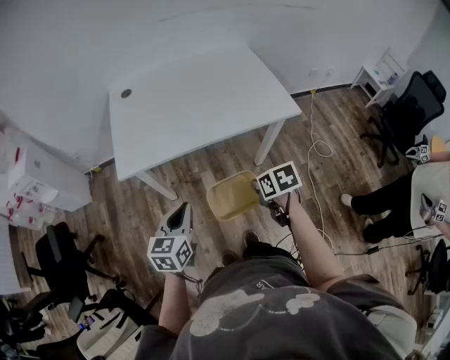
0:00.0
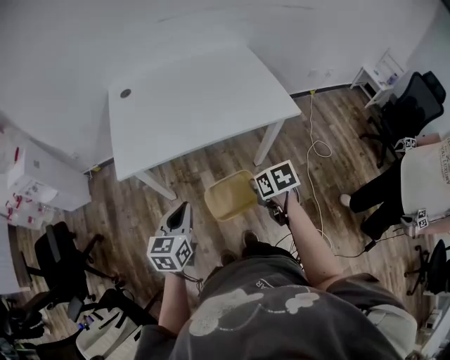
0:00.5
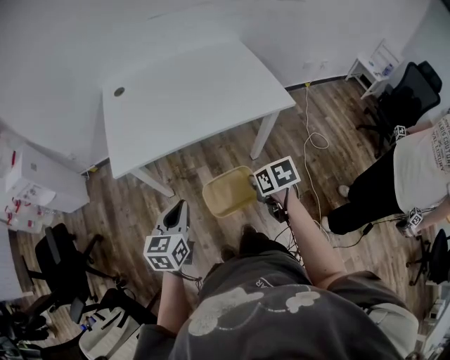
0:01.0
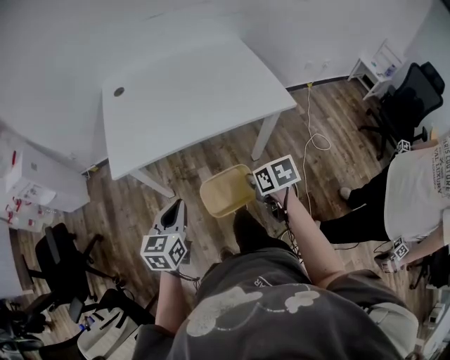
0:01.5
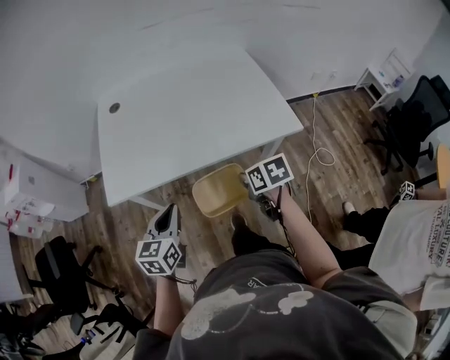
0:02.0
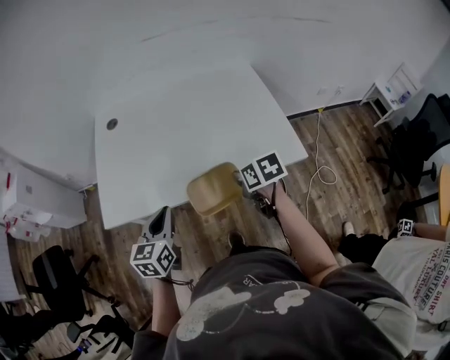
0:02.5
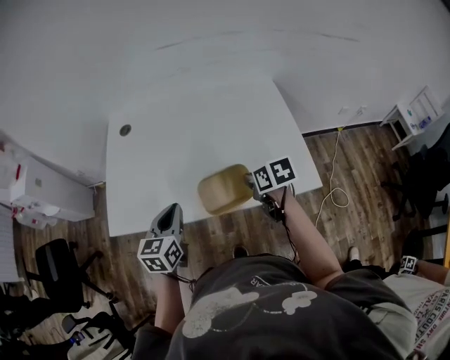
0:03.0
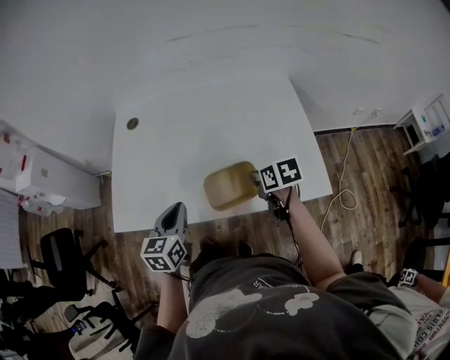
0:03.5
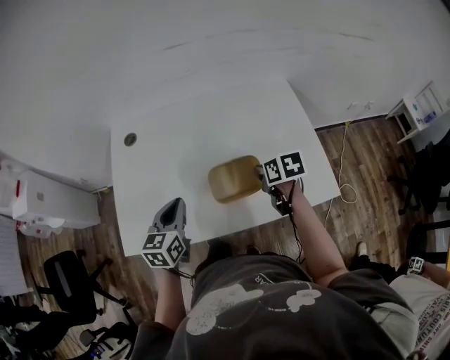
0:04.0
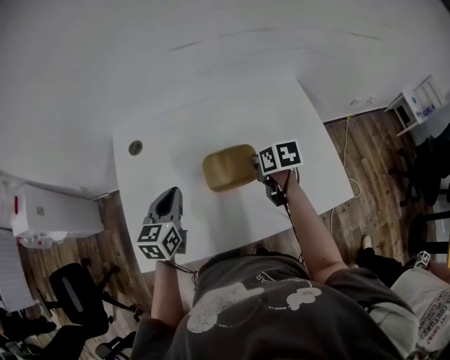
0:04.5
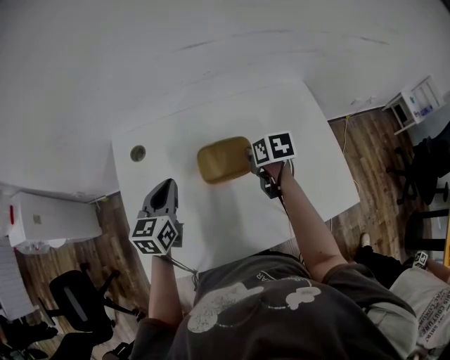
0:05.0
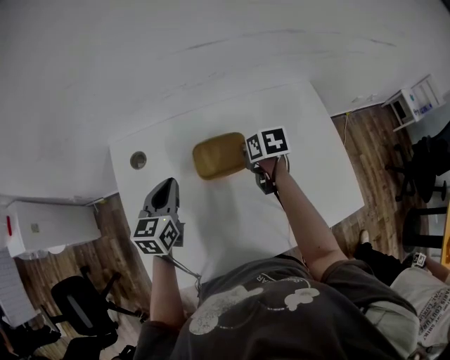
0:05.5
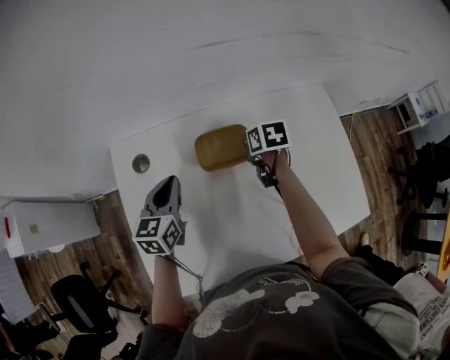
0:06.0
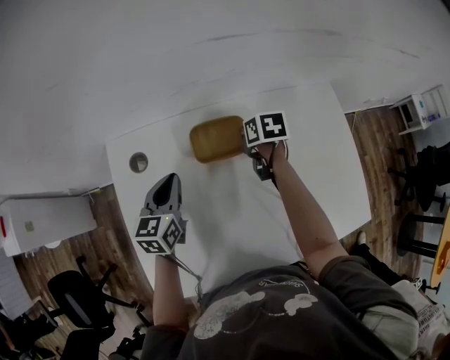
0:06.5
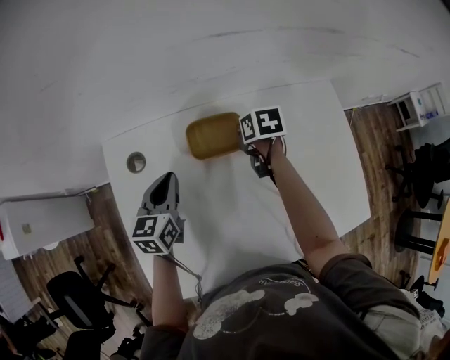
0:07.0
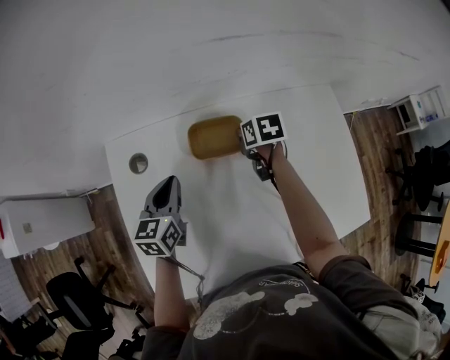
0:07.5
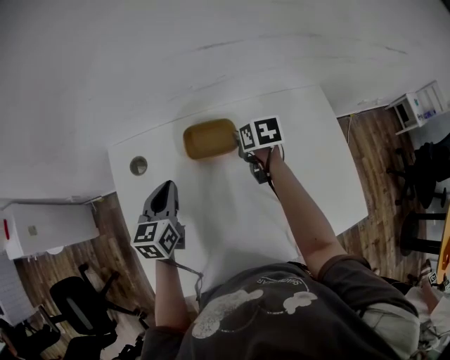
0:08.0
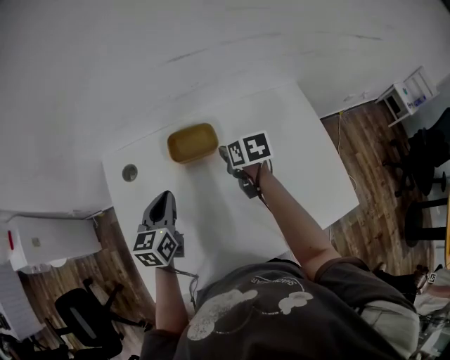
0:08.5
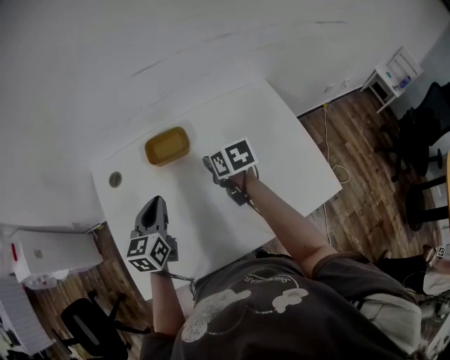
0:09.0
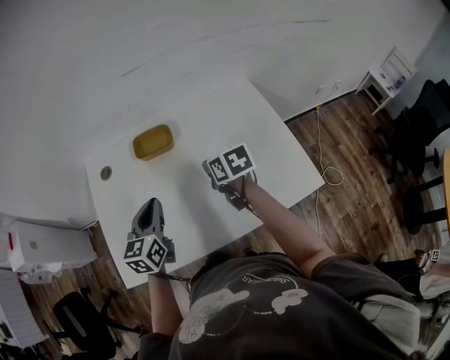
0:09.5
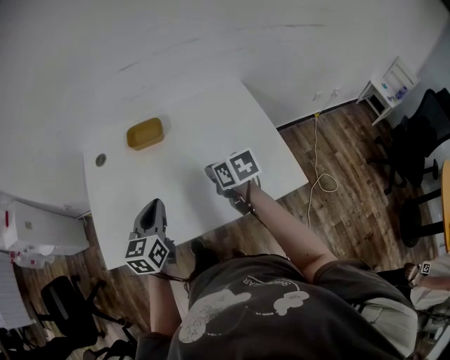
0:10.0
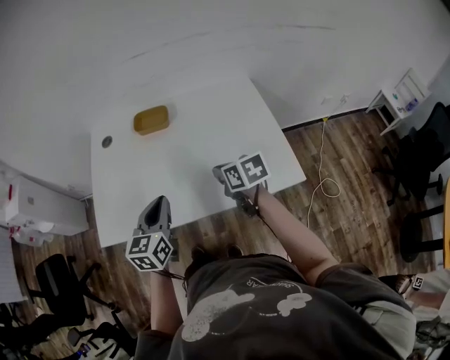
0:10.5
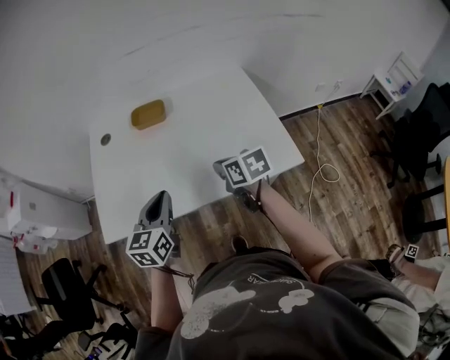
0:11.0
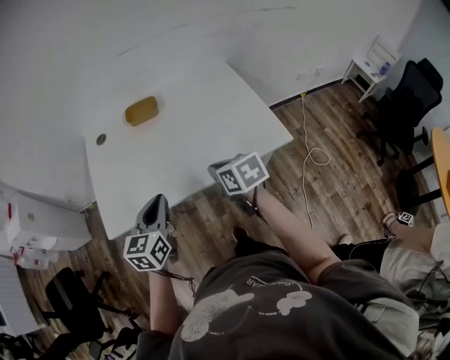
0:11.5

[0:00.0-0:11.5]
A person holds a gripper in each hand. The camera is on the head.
0:00.0 to 0:02.0: The grippers both shift forward by approximately 15 cm.
0:02.0 to 0:04.0: Both grippers move forward, some 35 cm.
0:04.0 to 0:06.0: The left gripper travels forward by some 30 cm, while the right gripper is displaced forward and to the left by approximately 35 cm.
0:06.0 to 0:07.5: The right gripper heads forward, covering approximately 5 cm.
0:07.5 to 0:09.5: The left gripper moves backward, to the right and upward, about 35 cm, while the right gripper travels backward and upward by approximately 35 cm.
0:09.5 to 0:11.5: The two grippers go about 30 cm backward.

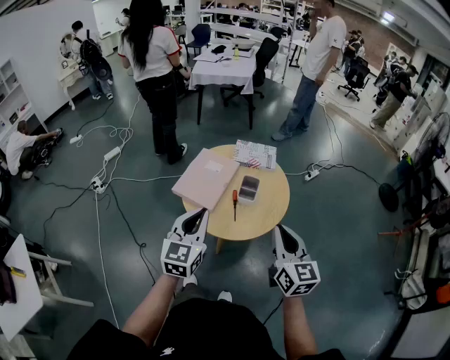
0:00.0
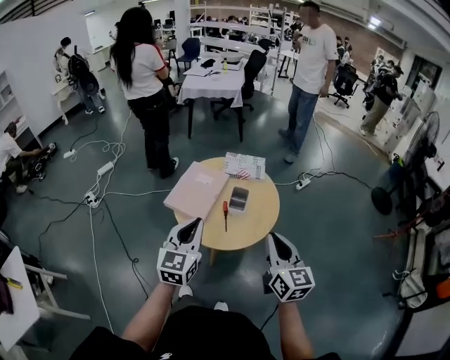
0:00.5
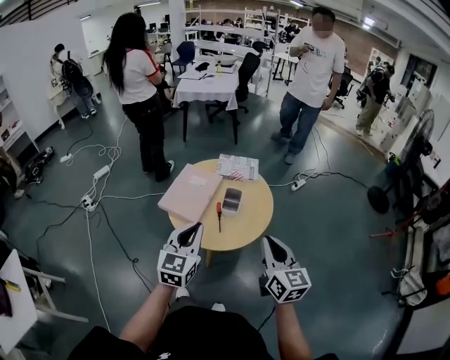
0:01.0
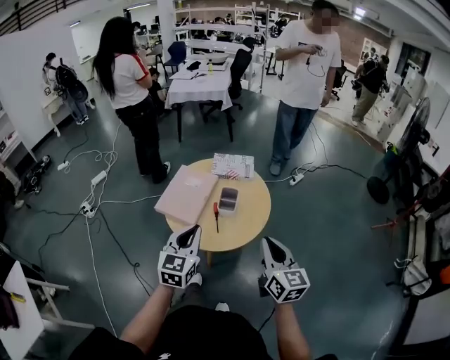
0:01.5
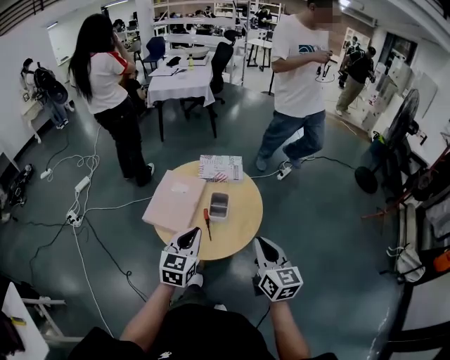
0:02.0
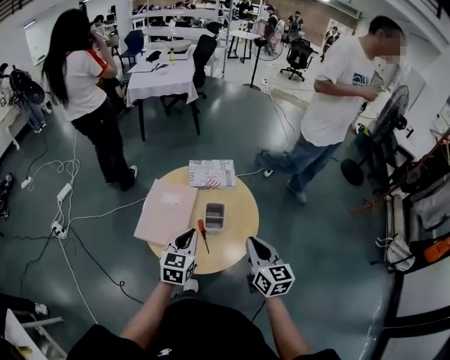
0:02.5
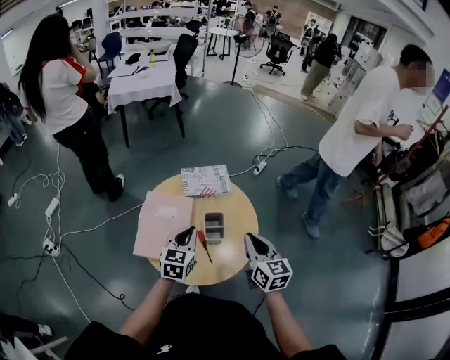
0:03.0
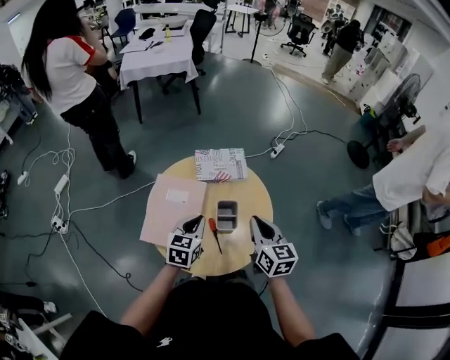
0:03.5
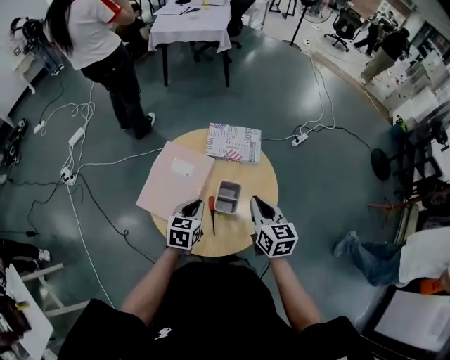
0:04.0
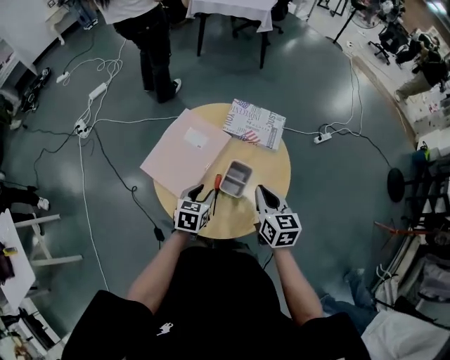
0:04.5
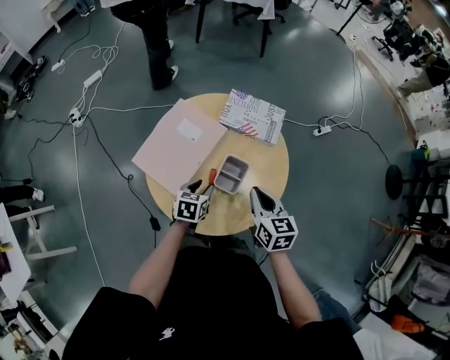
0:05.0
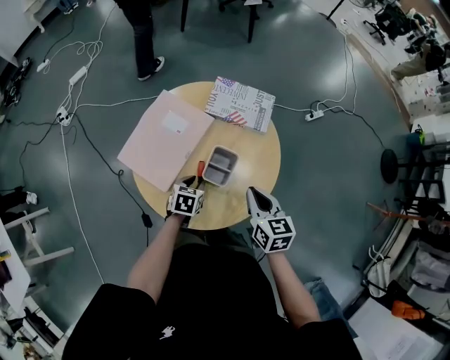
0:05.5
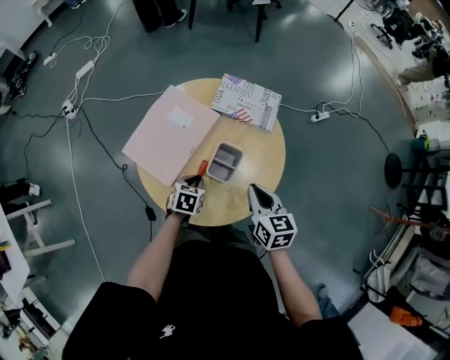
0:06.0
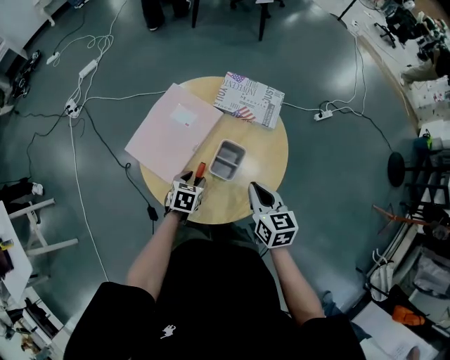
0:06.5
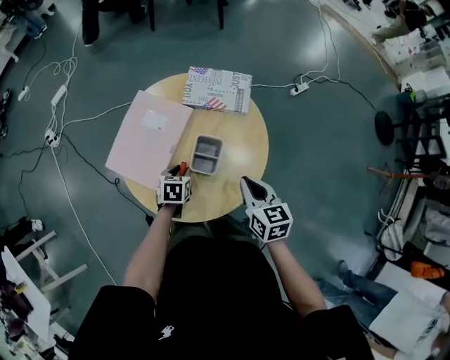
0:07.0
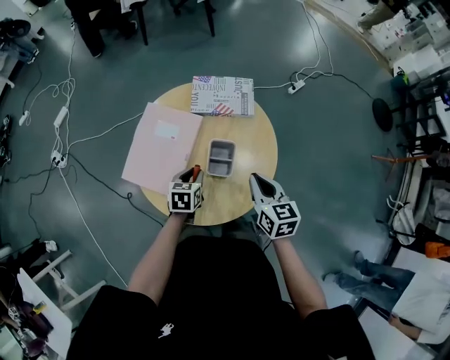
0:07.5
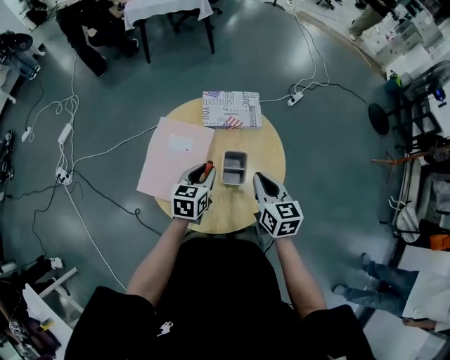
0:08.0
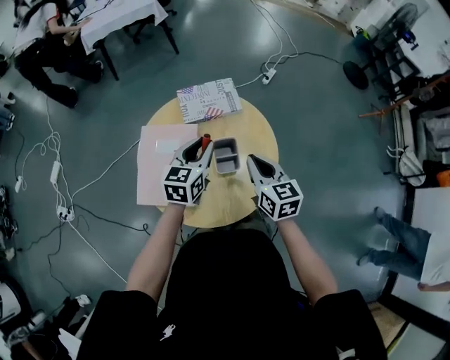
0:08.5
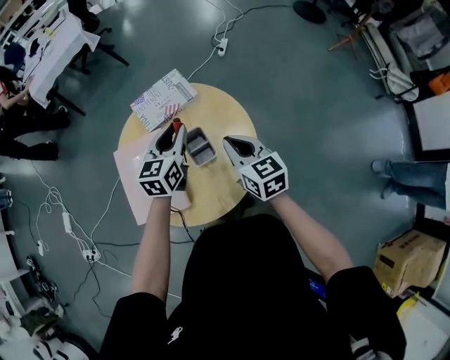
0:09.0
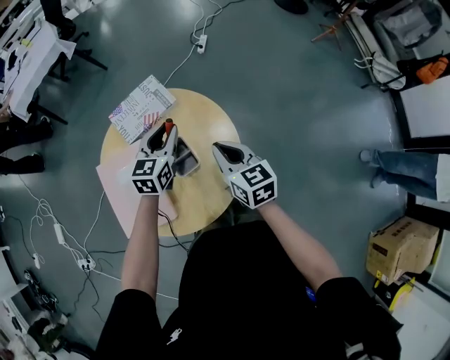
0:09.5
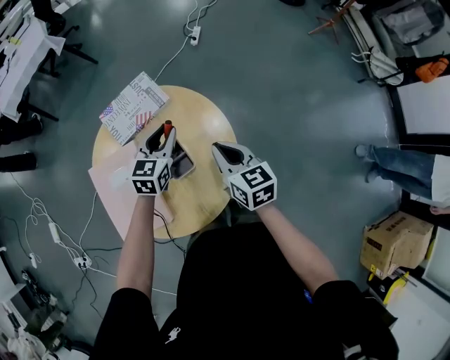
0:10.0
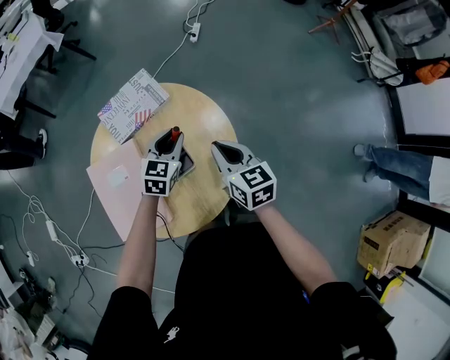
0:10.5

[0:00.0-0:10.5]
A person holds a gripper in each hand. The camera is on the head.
0:00.0 to 0:02.0: The left gripper goes about 10 cm downward, to the right and forward. The right gripper changes place by approximately 5 cm.
0:02.0 to 0:04.0: Both grippers move forward and downward, some 25 cm. The left gripper changes its angle by some 20 degrees.
0:04.0 to 0:06.5: The left gripper heads downward, covering roughly 15 cm, swivels approximately 20 degrees, and opens its fingers. Meanwhile the right gripper heads downward, covering approximately 10 cm.
0:06.5 to 0:08.5: The right gripper heads upward, covering about 5 cm, and swivels some 30 degrees; the left gripper goes some 25 cm upward, tips its fingers upward by some 40 degrees, and closes its fingers.
0:08.5 to 0:10.5: The left gripper travels to the right, downward and forward by some 15 cm, and swivels approximately 30 degrees. Meanwhile the right gripper heads to the right, covering approximately 5 cm.

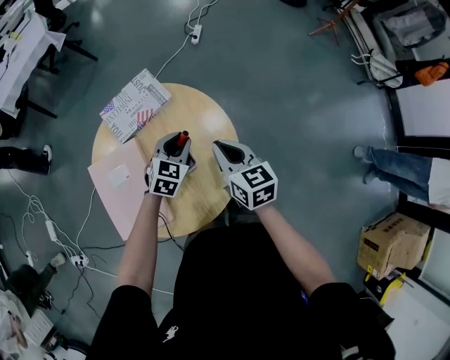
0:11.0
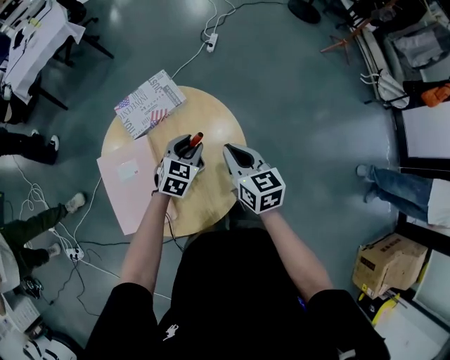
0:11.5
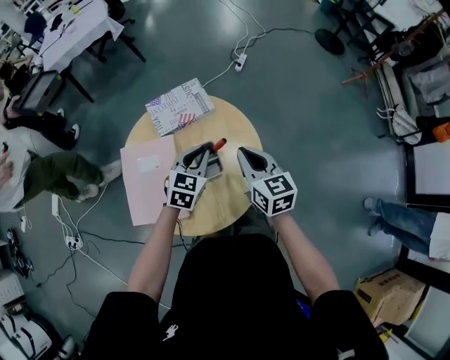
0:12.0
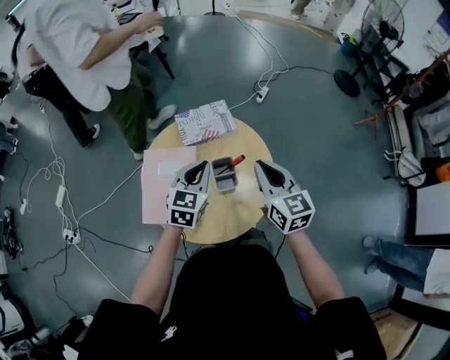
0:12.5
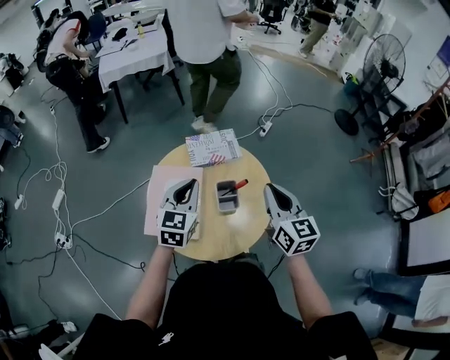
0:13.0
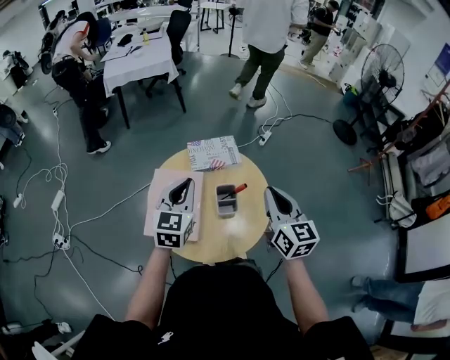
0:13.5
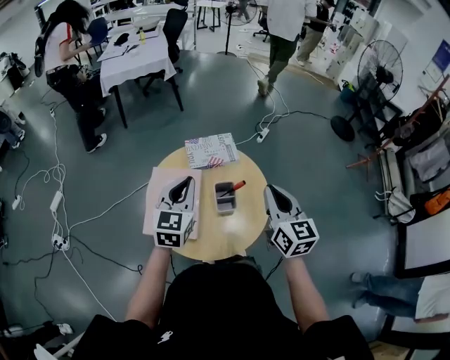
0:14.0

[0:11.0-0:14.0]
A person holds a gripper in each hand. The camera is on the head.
0:11.0 to 0:12.5: The left gripper is displaced upward, to the left and backward by roughly 20 cm, changes its angle by some 30 degrees, and closes its fingers. Meanwhile the right gripper is displaced upward by some 15 cm, and changes its angle by about 20 degrees.
0:12.5 to 0:14.0: The right gripper heads upward, covering about 5 cm. The left gripper heads upward and to the left, covering some 10 cm.

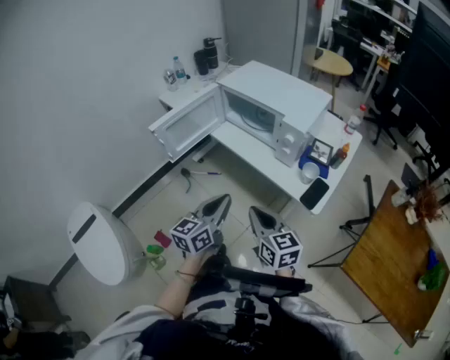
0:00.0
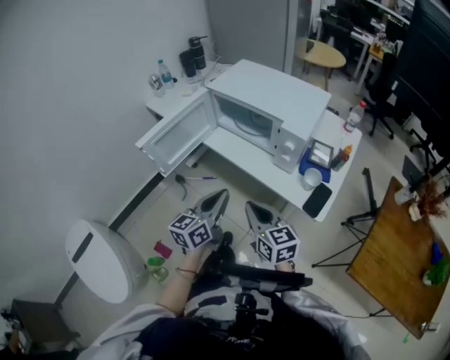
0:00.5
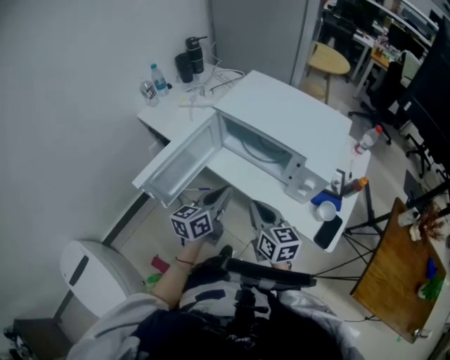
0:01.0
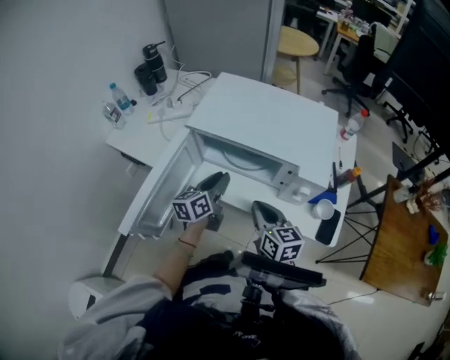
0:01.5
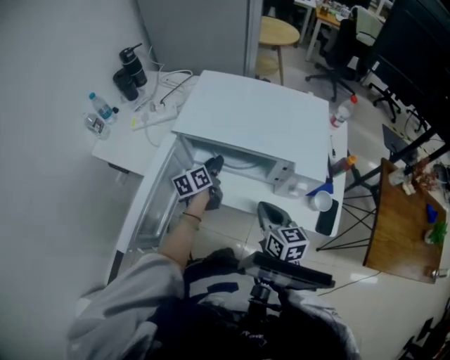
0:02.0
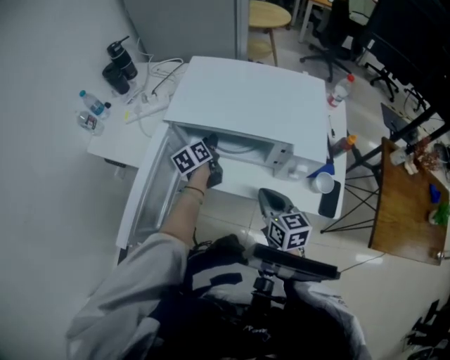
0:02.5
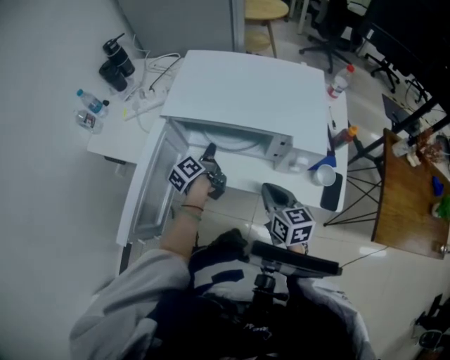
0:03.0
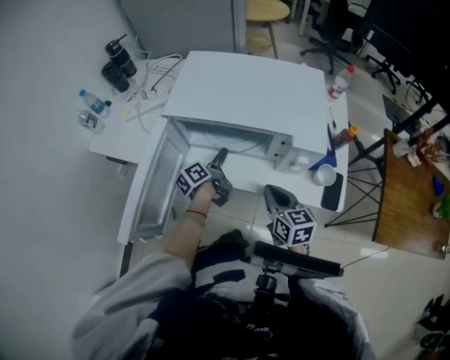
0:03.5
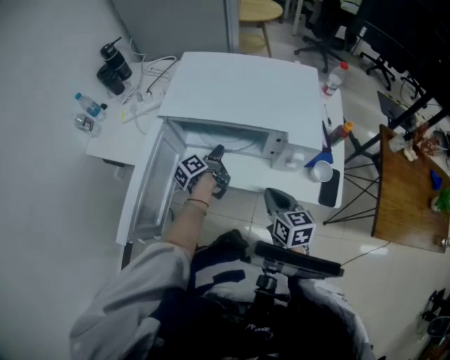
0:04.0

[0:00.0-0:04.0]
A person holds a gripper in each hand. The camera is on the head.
0:00.0 to 0:02.0: The right gripper changes place by about 30 cm, and turns by approximately 30 degrees.
